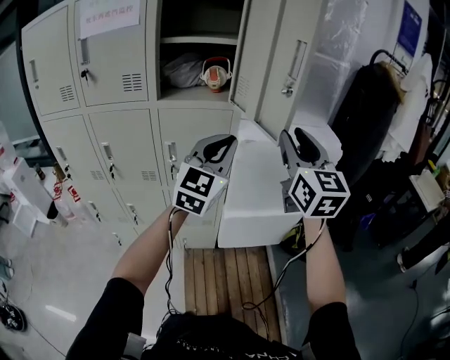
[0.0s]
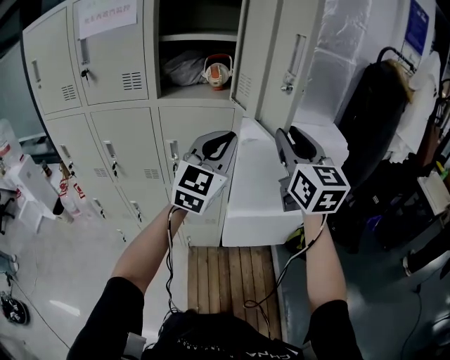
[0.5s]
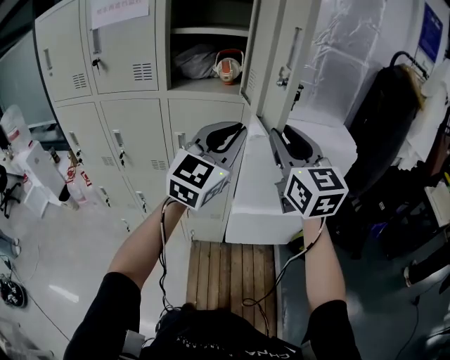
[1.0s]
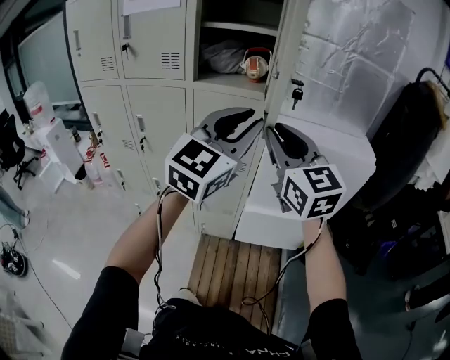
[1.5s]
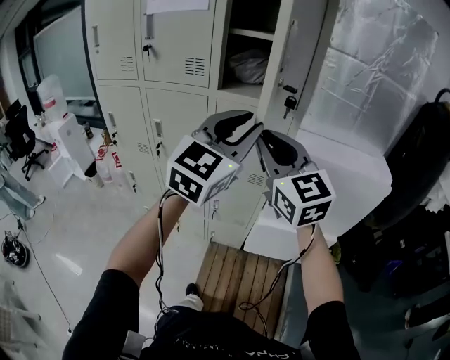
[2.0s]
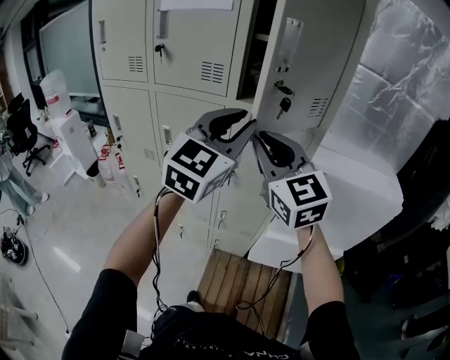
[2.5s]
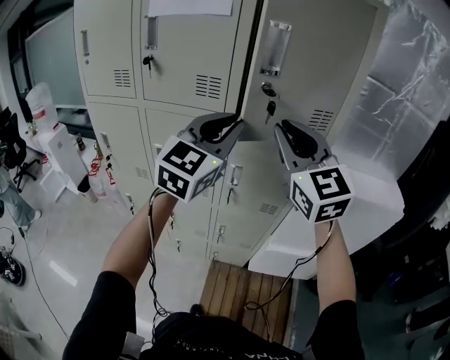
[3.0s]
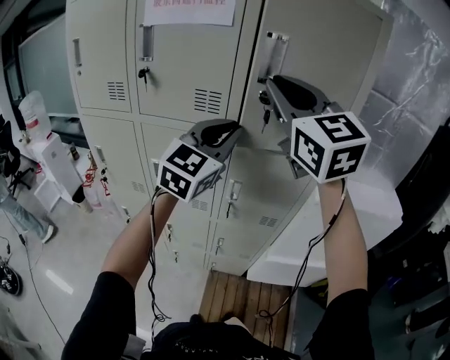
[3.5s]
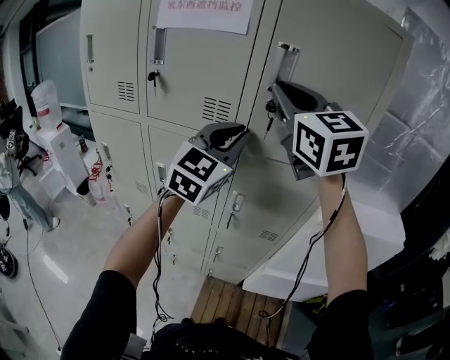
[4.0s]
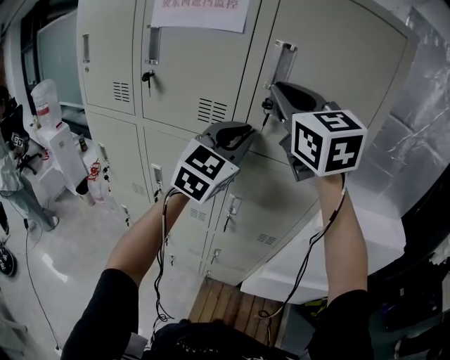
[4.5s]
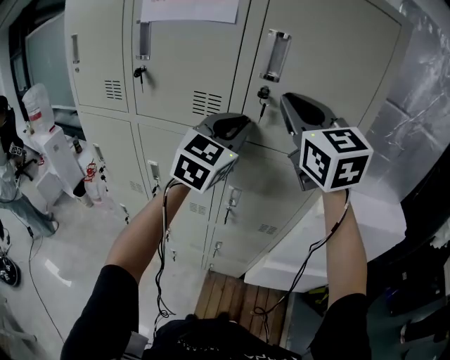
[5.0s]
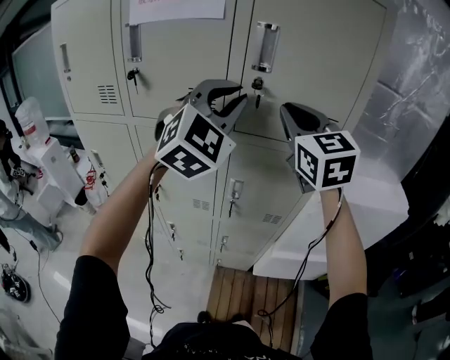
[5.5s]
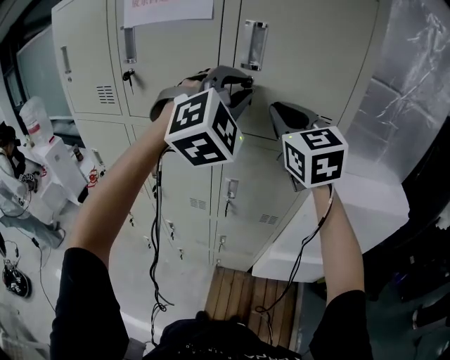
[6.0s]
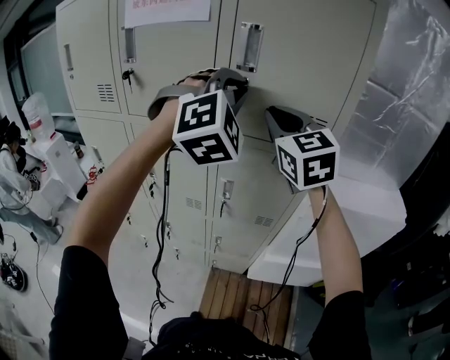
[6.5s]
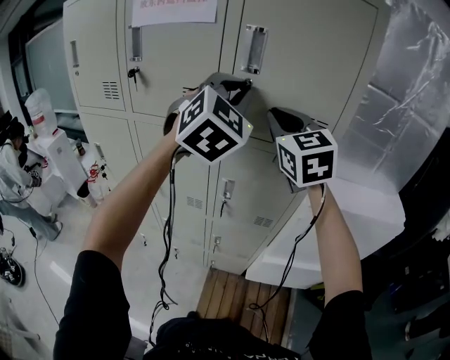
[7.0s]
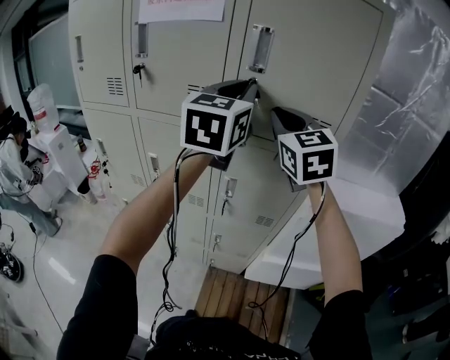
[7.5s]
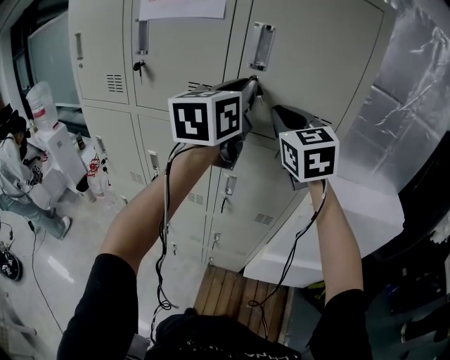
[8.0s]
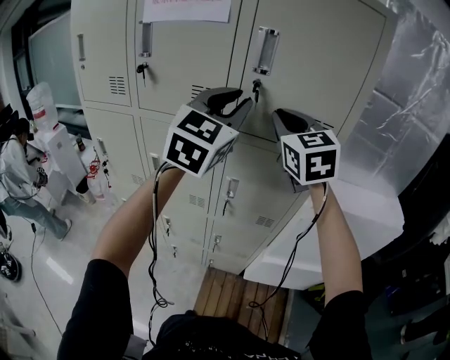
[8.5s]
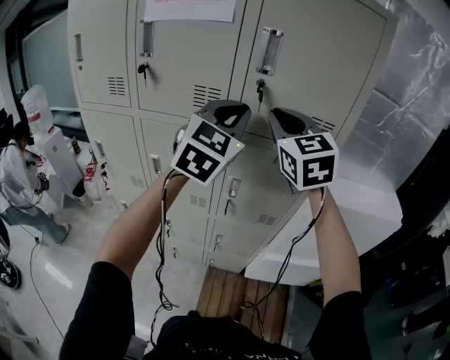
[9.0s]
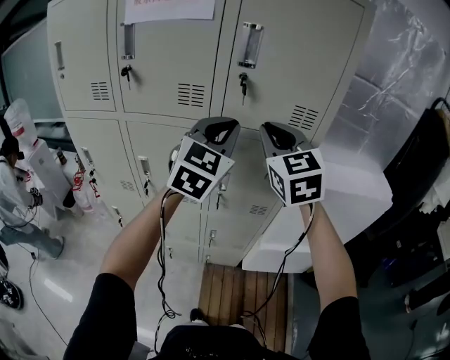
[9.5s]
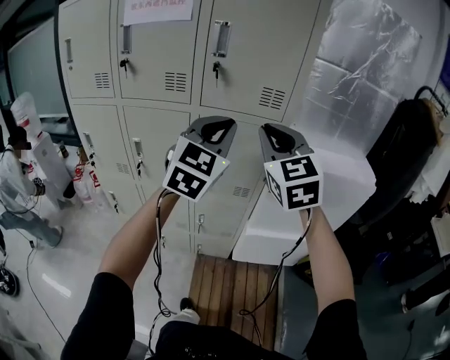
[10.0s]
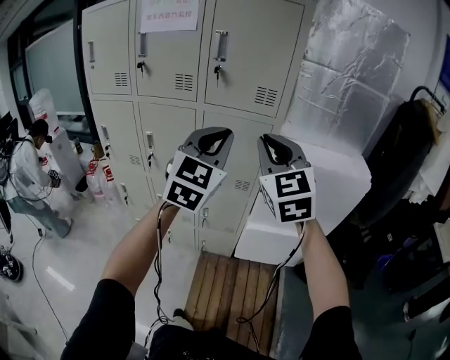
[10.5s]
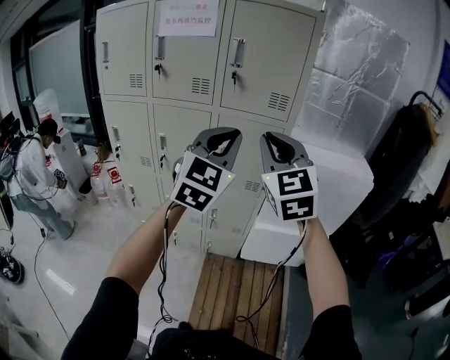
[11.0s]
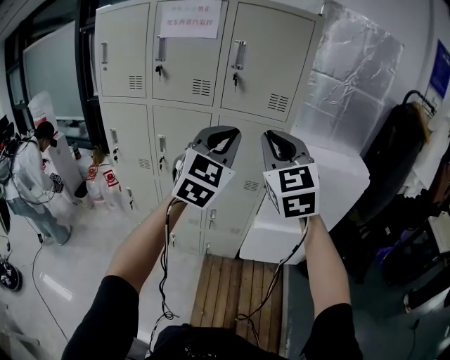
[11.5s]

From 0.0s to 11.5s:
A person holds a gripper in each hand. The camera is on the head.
From 0.0s to 2.0s: The left gripper is displaced to the left and upward by about 10 cm. Meanwhile the right gripper moves to the left, roughly 20 cm, and changes its angle by roughly 30 degrees.
From 2.0s to 4.0s: The right gripper moves forward, upward and to the left, approximately 30 cm, while the left gripper moves forward and to the left, about 25 cm.
From 4.0s to 6.0s: The right gripper shifts some 10 cm downward and to the right, while the left gripper shifts roughly 5 cm upward, and twists approximately 40 degrees clockwise, seen from behind.
From 6.0s to 7.5s: The left gripper twists about 60 degrees counterclockwise, seen from behind.
From 7.5s to 9.5s: The right gripper is displaced backward by some 5 cm; the left gripper shifts some 10 cm downward, and rotates approximately 20 degrees.
From 9.5s to 11.5s: Both grippers move backward, roughly 25 cm.

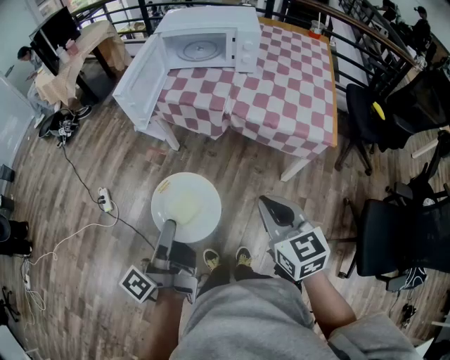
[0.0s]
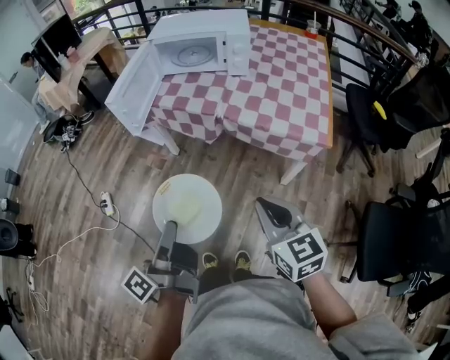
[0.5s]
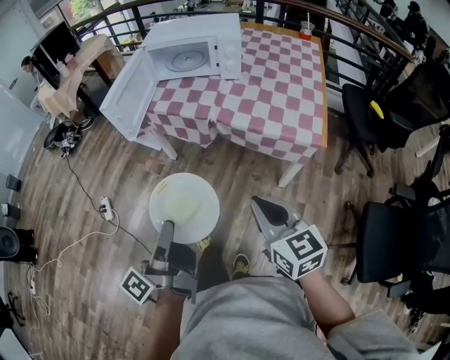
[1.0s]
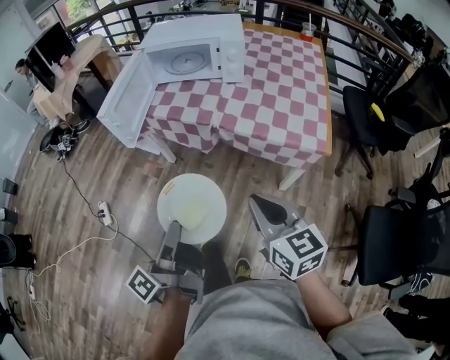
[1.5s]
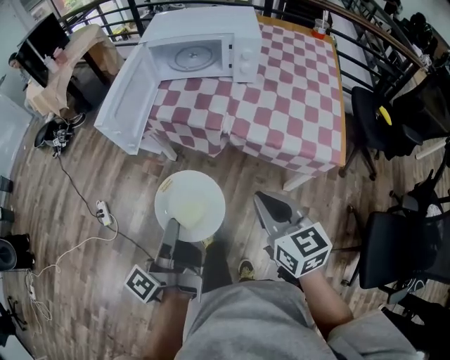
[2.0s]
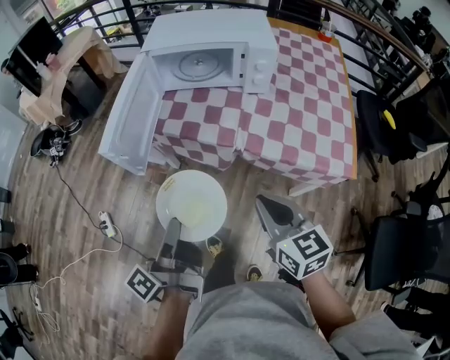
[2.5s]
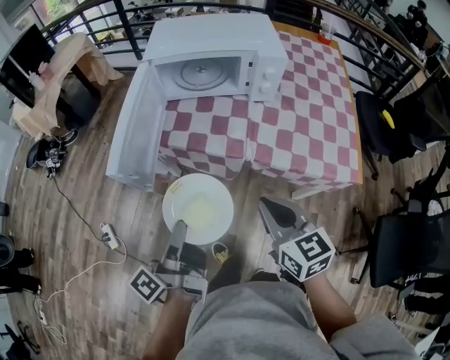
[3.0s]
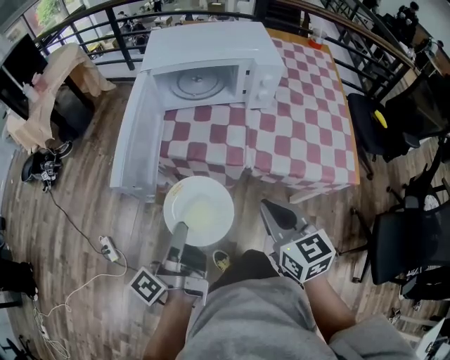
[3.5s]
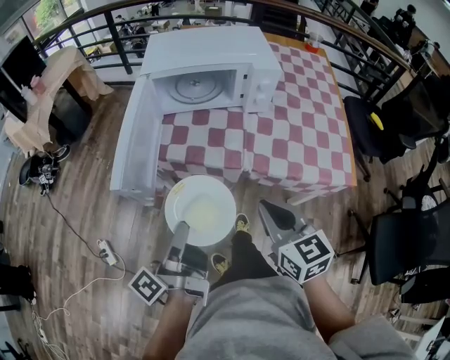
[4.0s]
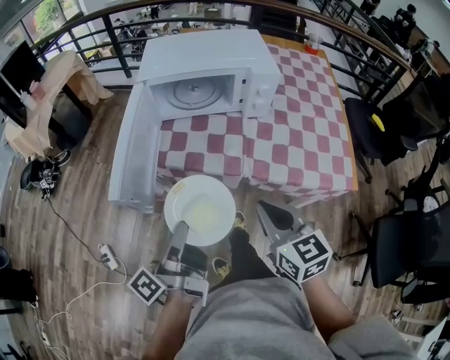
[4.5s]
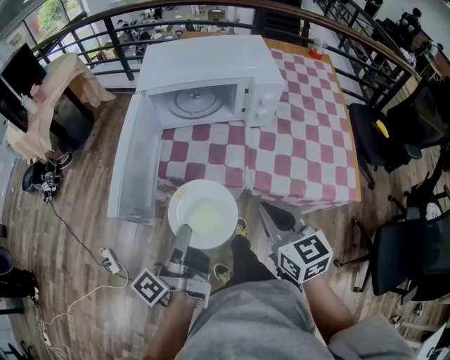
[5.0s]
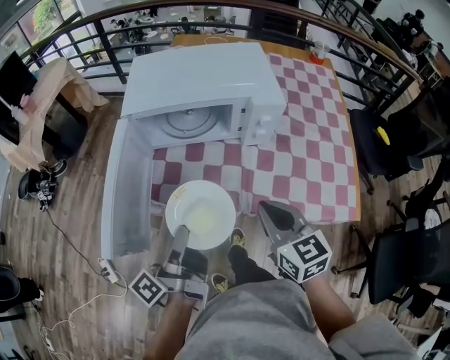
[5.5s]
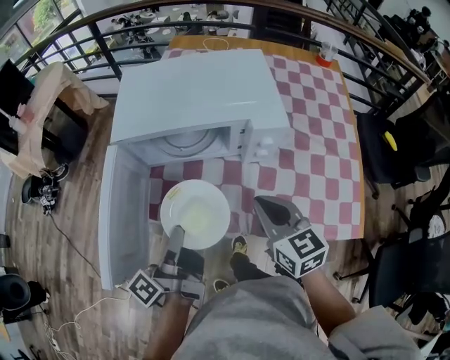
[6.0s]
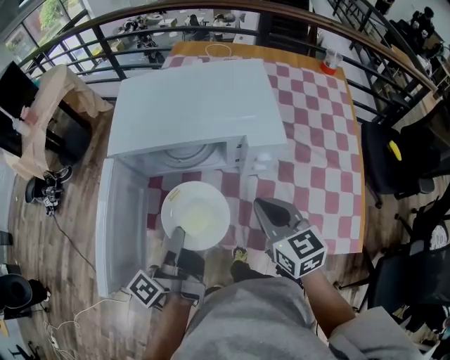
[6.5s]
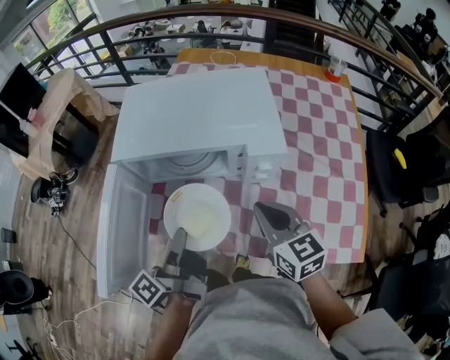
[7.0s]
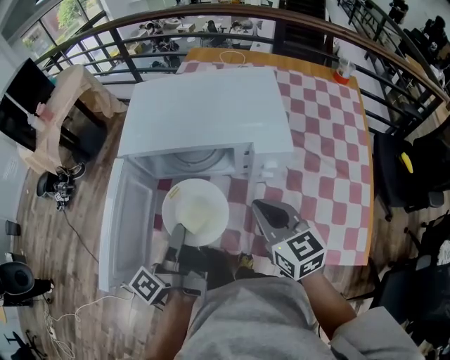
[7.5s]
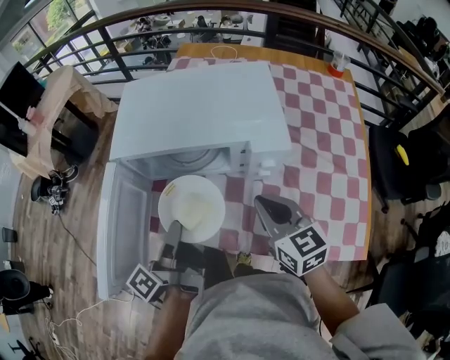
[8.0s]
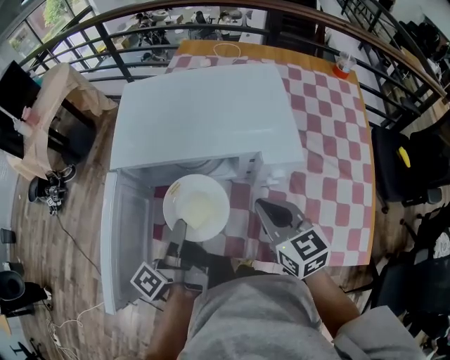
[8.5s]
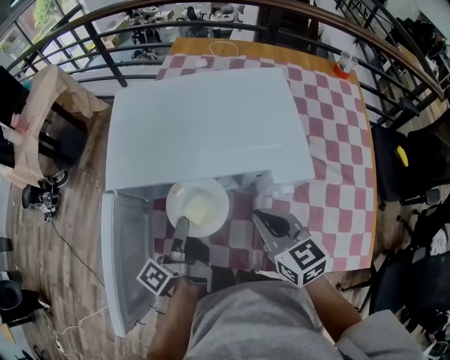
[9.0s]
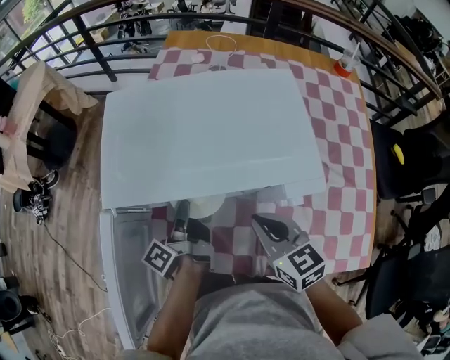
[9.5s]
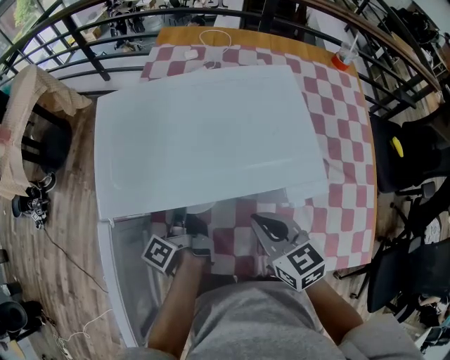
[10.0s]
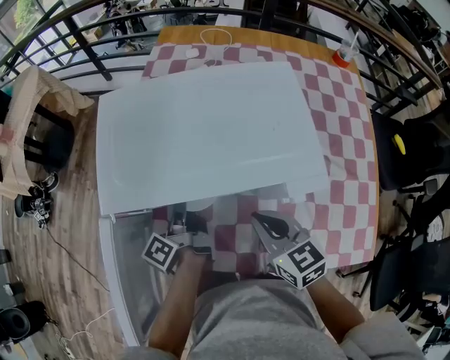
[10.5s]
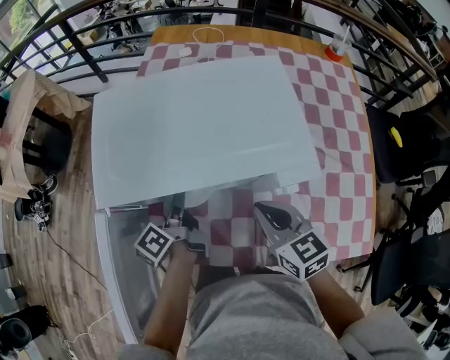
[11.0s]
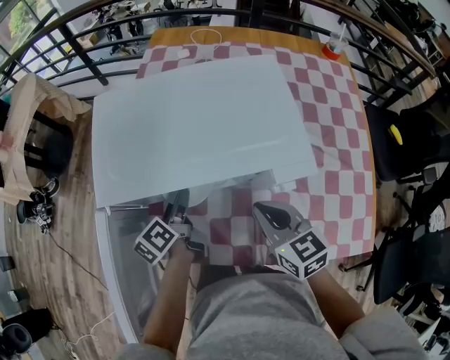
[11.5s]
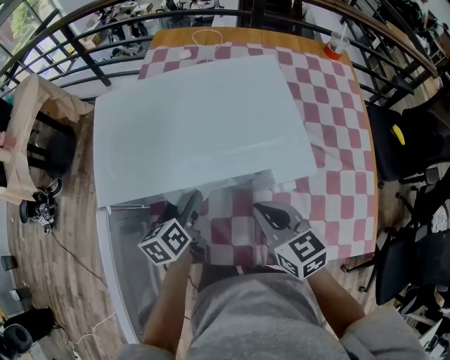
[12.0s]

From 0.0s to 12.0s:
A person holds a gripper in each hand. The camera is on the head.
From 0.0s to 2.0s: The grippers both shift forward by about 15 cm.
From 2.0s to 4.0s: The grippers both shift forward and to the left by approximately 20 cm.
From 4.0s to 6.0s: Both grippers move forward, some 25 cm.
From 6.0s to 8.0s: Both grippers travel together forward, about 5 cm.
From 8.0s to 10.0s: The right gripper travels forward and downward by roughly 10 cm. The left gripper travels forward and downward by roughly 25 cm.
From 10.0s to 12.0s: The left gripper twists about 50 degrees clockwise, seen from behind, and opens.

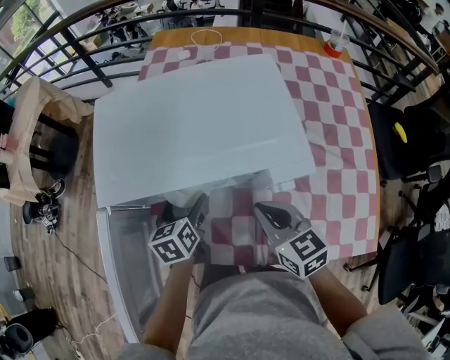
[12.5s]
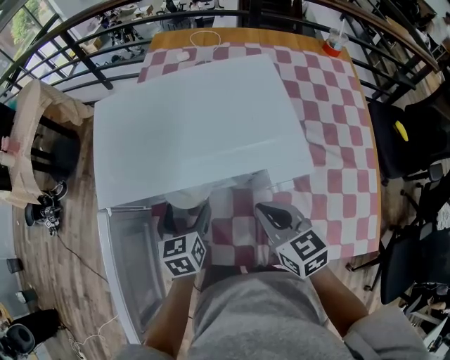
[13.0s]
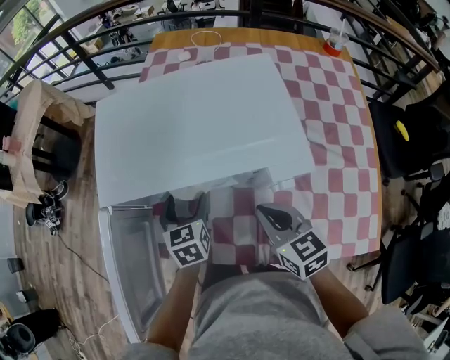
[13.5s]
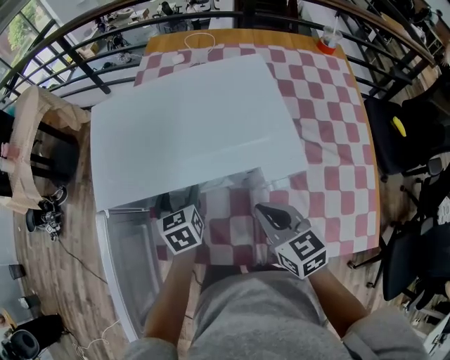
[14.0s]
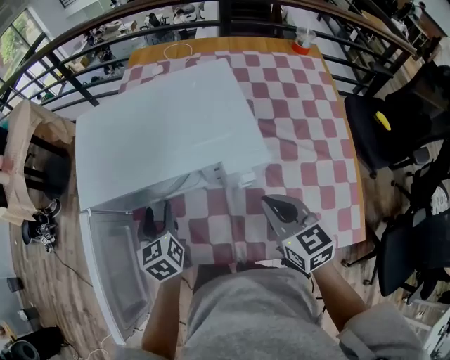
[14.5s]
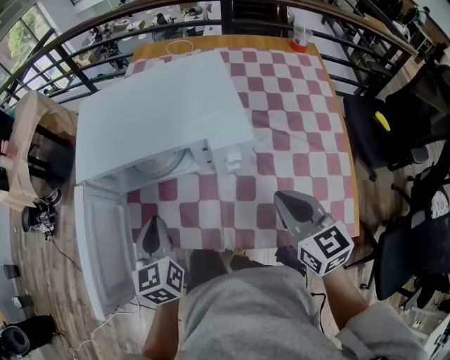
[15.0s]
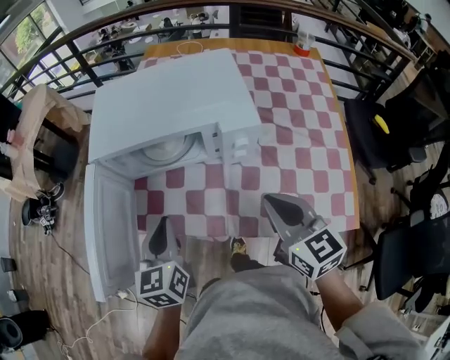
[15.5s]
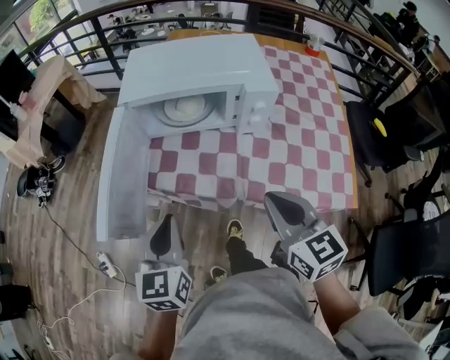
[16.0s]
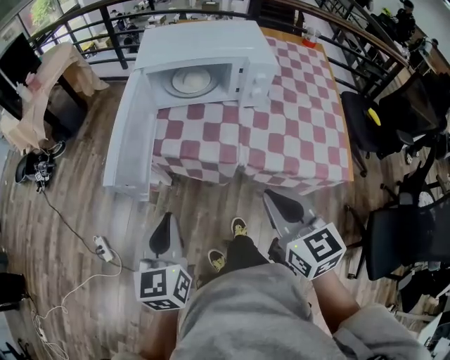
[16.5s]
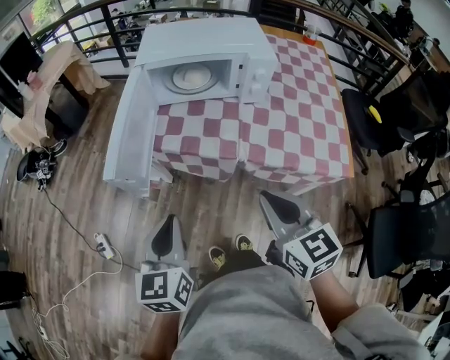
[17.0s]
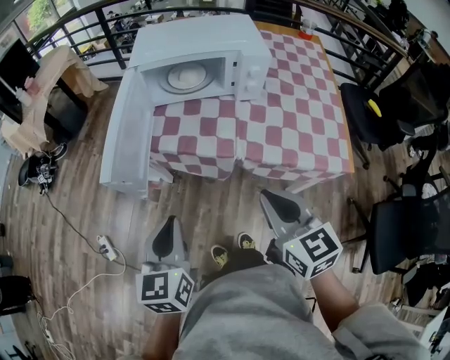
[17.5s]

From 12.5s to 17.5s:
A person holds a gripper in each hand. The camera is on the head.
From 12.5s to 15.0s: The left gripper travels backward and upward by about 20 cm, rotates about 20 degrees, and closes its fingers, while the right gripper moves backward, to the right and upward, roughly 20 cm.
From 15.0s to 17.5s: The right gripper moves backward and to the left, roughly 35 cm. The left gripper shifts some 35 cm backward.
